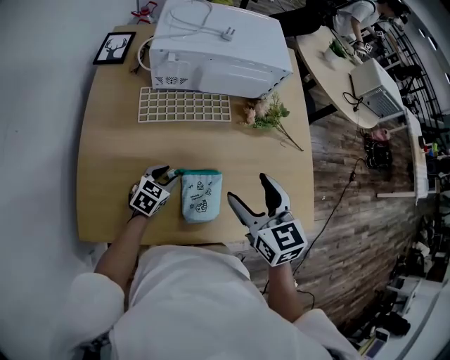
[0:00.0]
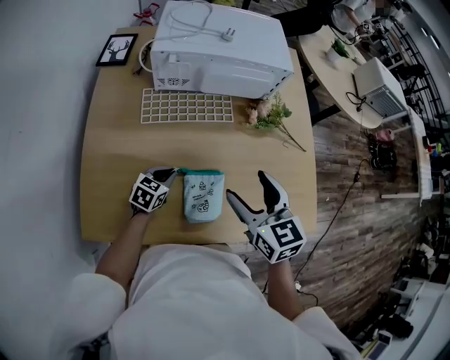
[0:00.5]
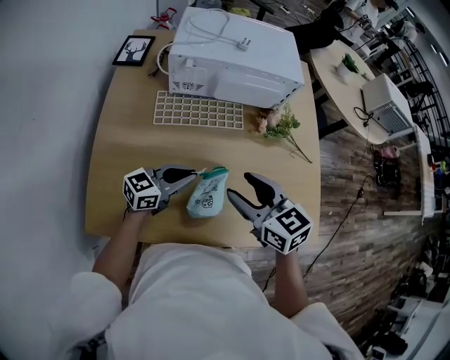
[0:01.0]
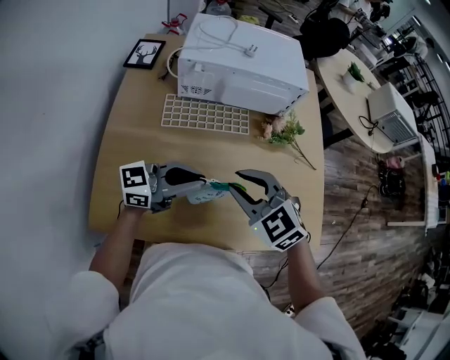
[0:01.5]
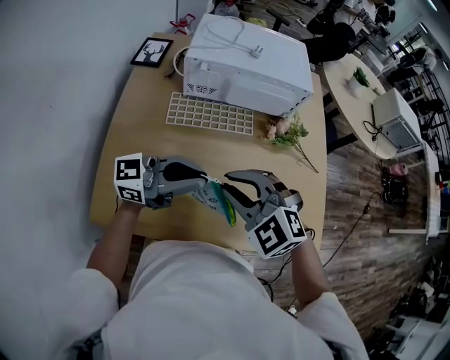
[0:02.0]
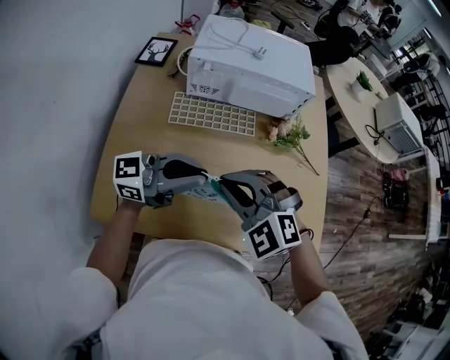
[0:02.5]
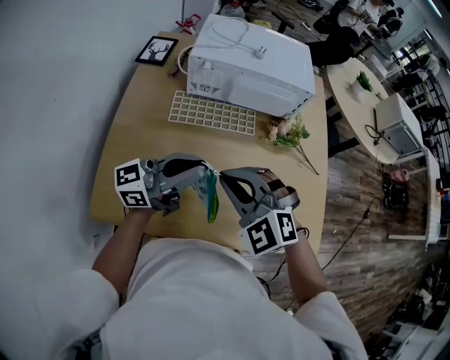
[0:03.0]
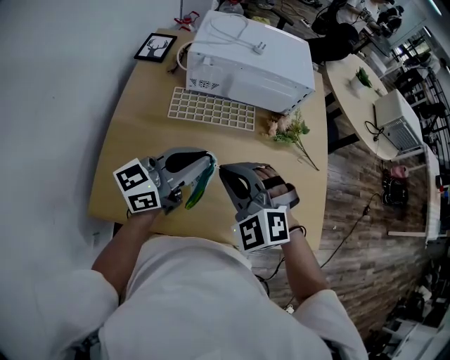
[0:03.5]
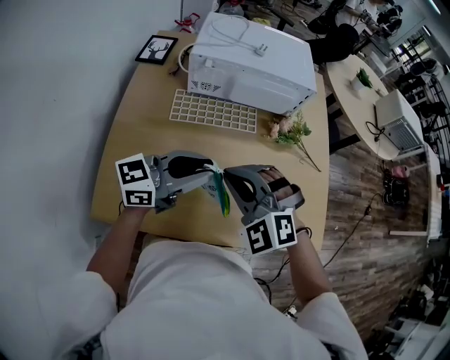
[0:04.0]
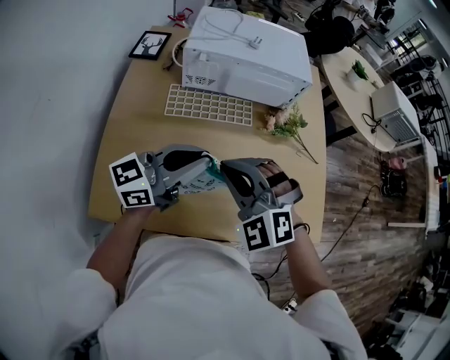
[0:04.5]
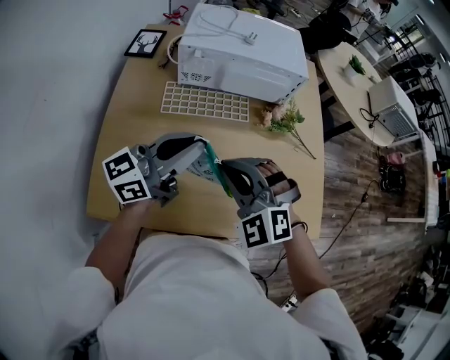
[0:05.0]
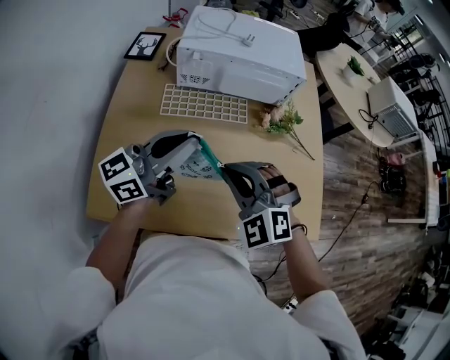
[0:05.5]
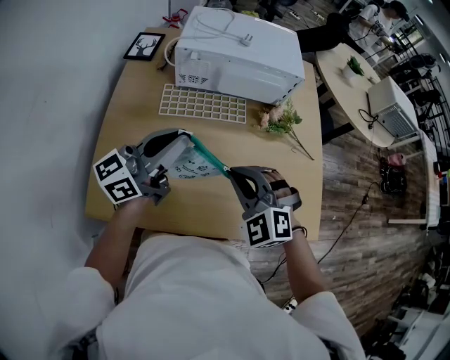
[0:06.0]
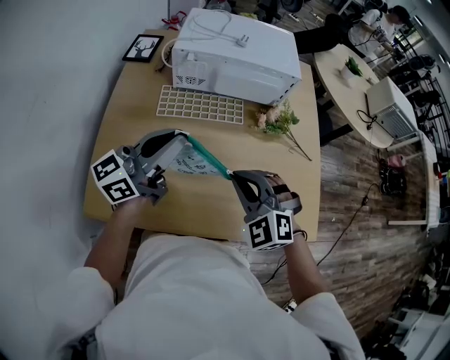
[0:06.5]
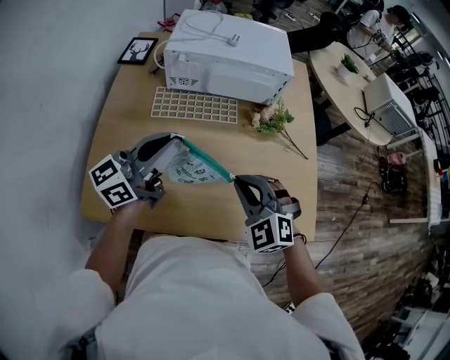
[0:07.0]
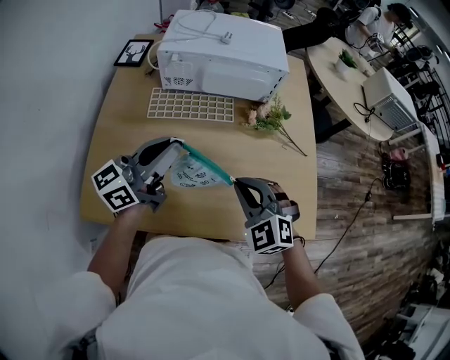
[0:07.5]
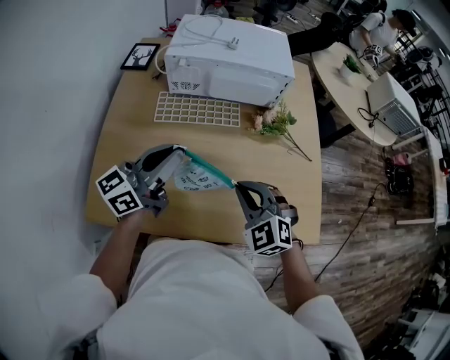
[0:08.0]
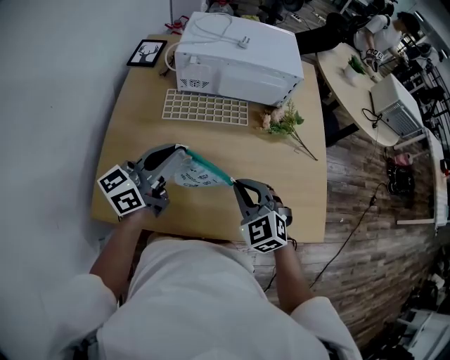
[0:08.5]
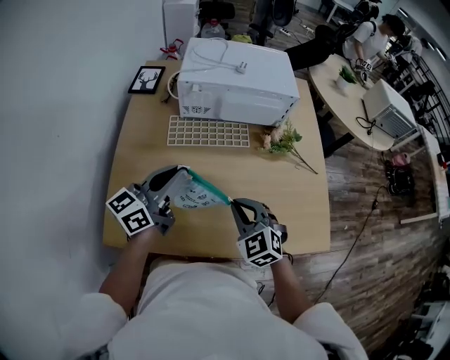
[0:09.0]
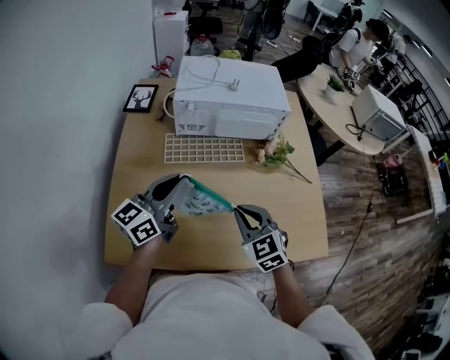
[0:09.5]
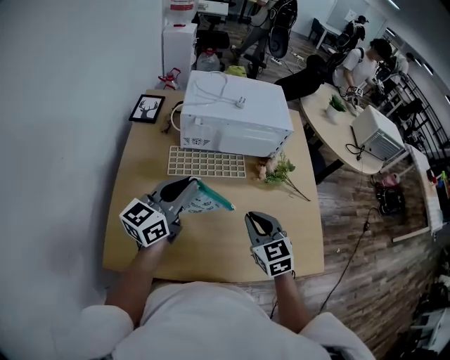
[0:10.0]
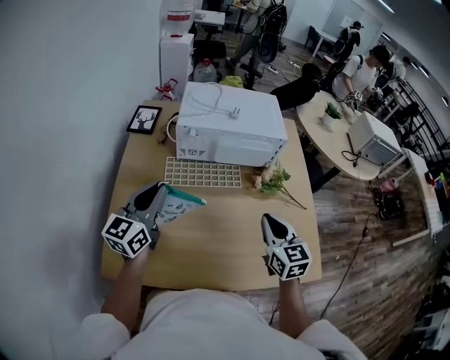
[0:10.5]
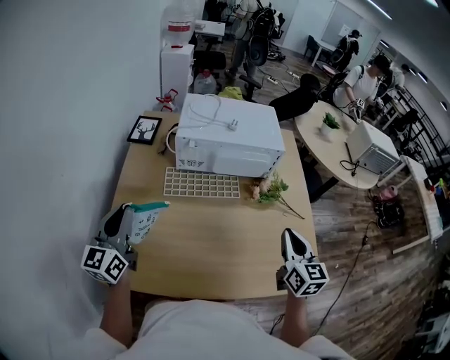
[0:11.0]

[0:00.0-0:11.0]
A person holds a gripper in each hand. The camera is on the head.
0:00.0 to 0:02.0: The left gripper travels upward by approximately 30 cm, tips its fingers upward by approximately 60 degrees, and closes up. Meanwhile the right gripper changes place by roughly 10 cm, rotates around the line of its fingers by roughly 50 degrees, counterclockwise from behind, and closes.
0:02.0 to 0:03.5: The left gripper changes its angle by roughly 30 degrees.
0:03.5 to 0:05.5: The grippers make only small movements.
0:05.5 to 0:07.5: The right gripper moves to the right, approximately 10 cm.
0:07.5 to 0:09.0: Both grippers move to the left, about 5 cm.
0:09.0 to 0:11.0: The right gripper is displaced to the right and upward by roughly 20 cm, and twists about 40 degrees clockwise, seen from behind; the left gripper moves to the left, roughly 15 cm, and rotates about 40 degrees.

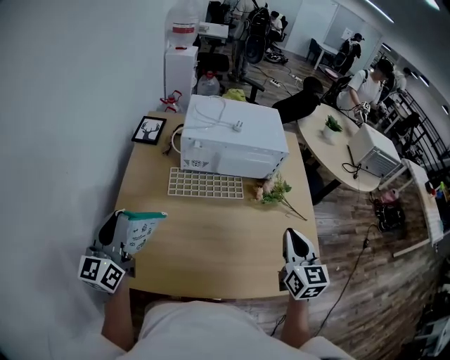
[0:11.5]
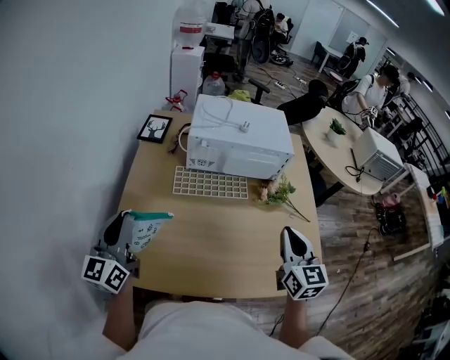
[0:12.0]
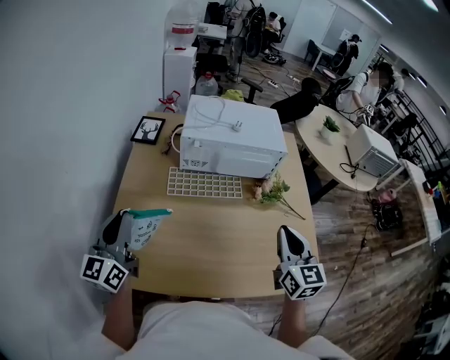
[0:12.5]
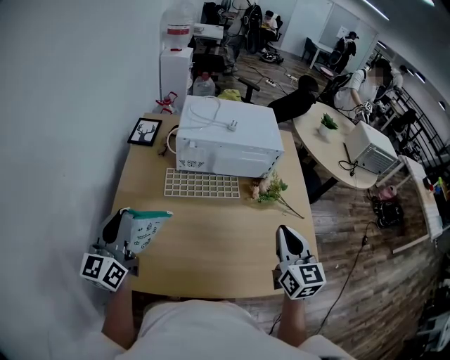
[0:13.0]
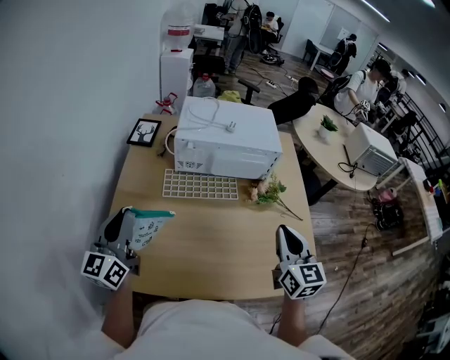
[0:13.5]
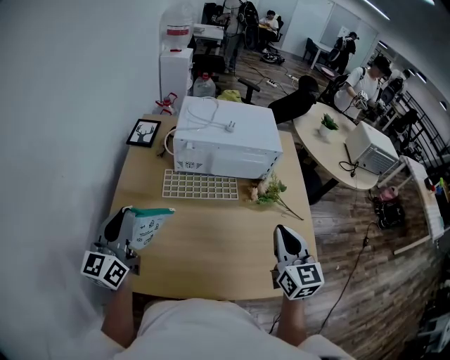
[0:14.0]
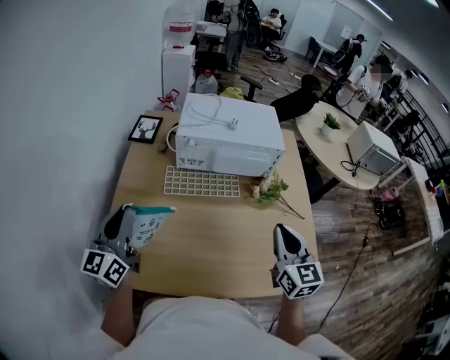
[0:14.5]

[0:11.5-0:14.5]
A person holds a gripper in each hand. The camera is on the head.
0:11.5 to 0:14.5: There are only small adjustments of the grippers.

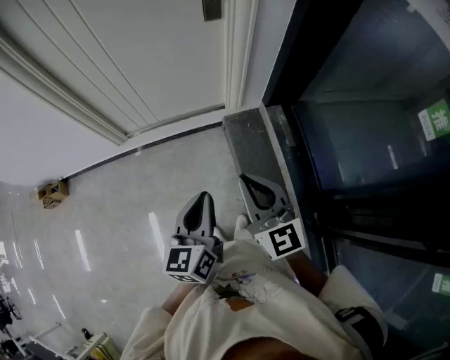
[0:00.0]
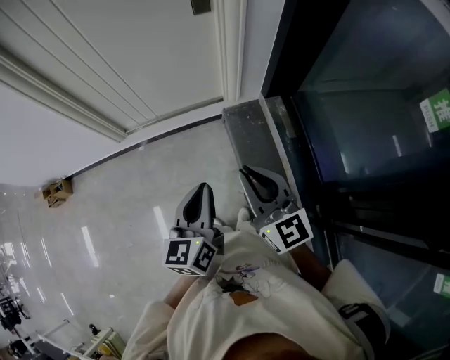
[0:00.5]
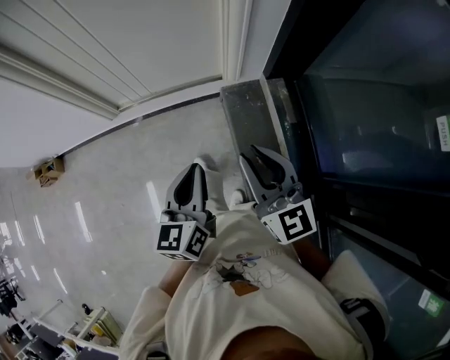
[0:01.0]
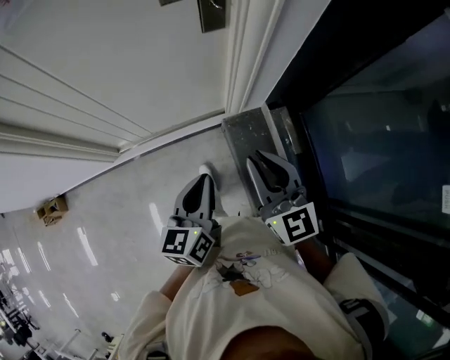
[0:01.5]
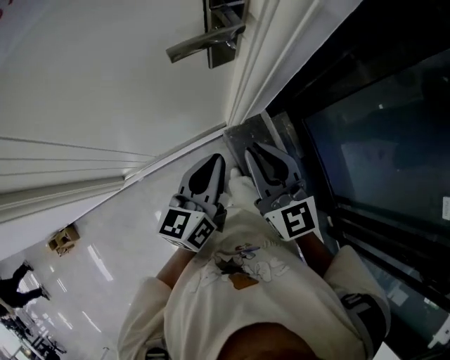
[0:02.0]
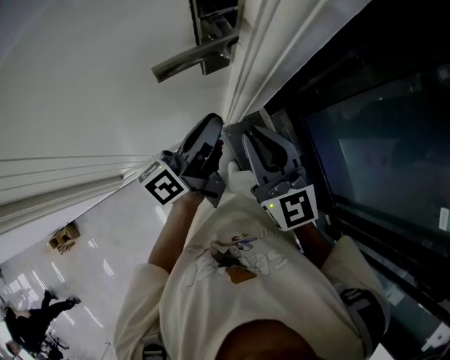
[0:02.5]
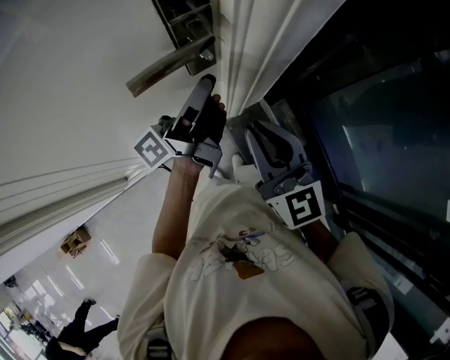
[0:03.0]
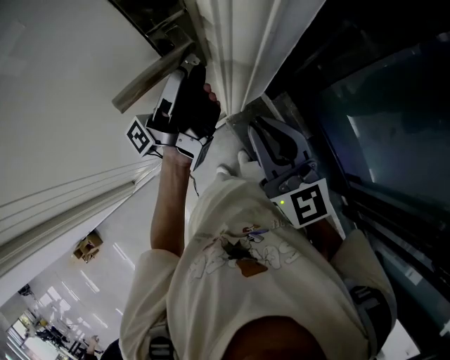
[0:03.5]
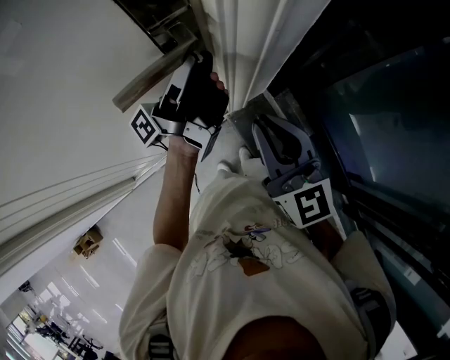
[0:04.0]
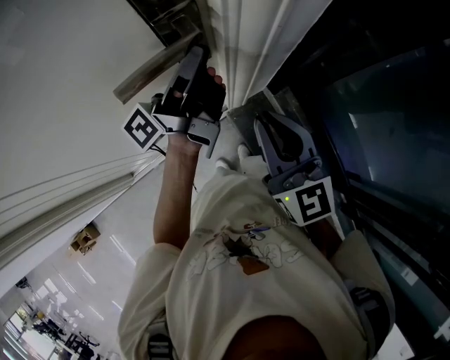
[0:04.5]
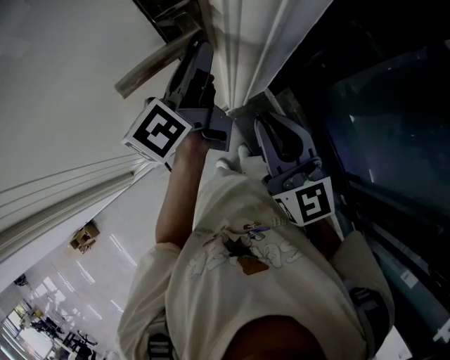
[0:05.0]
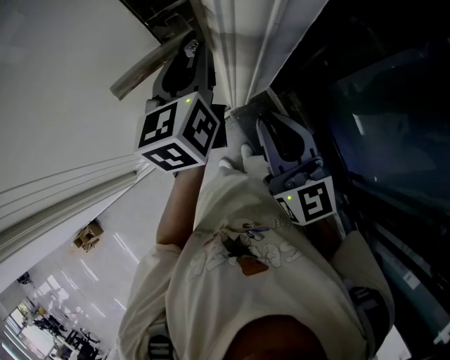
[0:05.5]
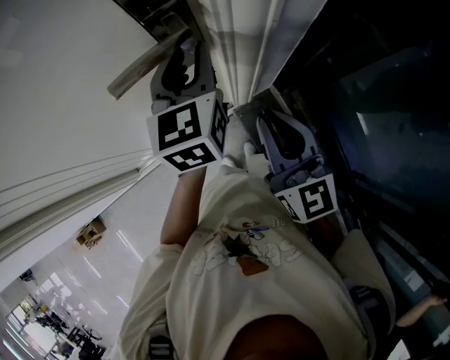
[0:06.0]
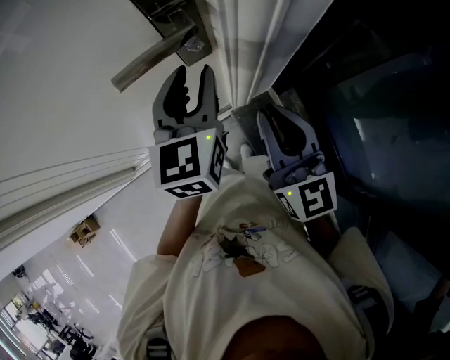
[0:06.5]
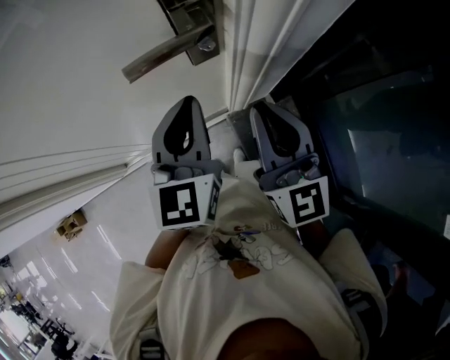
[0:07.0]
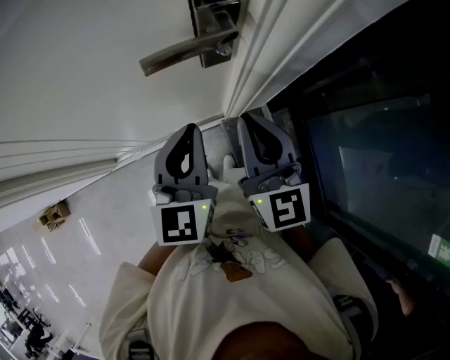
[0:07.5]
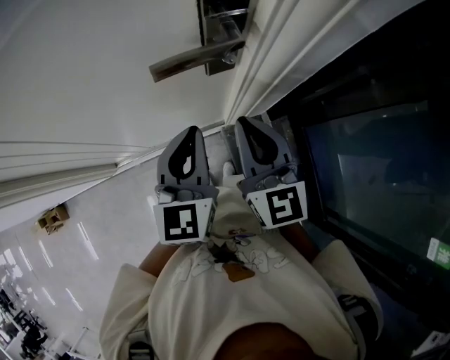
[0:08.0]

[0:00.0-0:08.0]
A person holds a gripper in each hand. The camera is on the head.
0:00.0 to 0:02.0: The two grippers travel together, forward, about 40 cm. The left gripper rotates approximately 20 degrees.
0:02.0 to 0:04.0: The left gripper goes roughly 25 cm forward, points its fingers roughly 40 degrees further upward, and opens, while the right gripper travels forward and to the right by some 10 cm.
0:04.0 to 0:06.0: The left gripper rolls clockwise, seen from behind, by roughly 90 degrees.
0:06.0 to 0:08.0: The left gripper travels backward and to the left by approximately 15 cm, and closes; the right gripper is displaced to the left by roughly 5 cm.

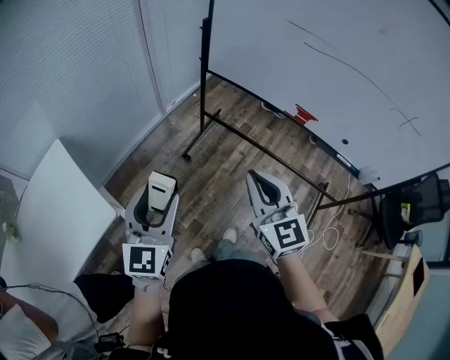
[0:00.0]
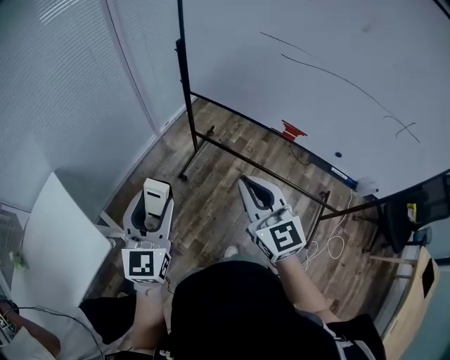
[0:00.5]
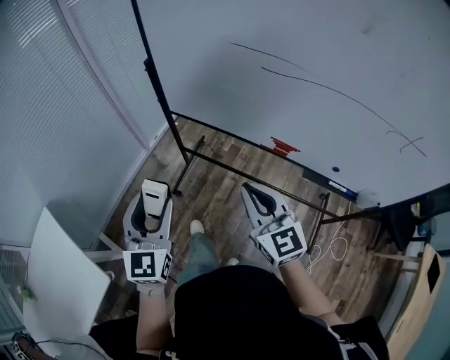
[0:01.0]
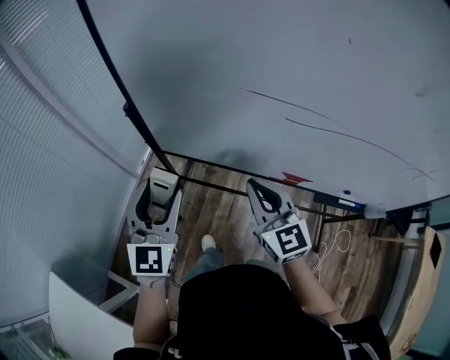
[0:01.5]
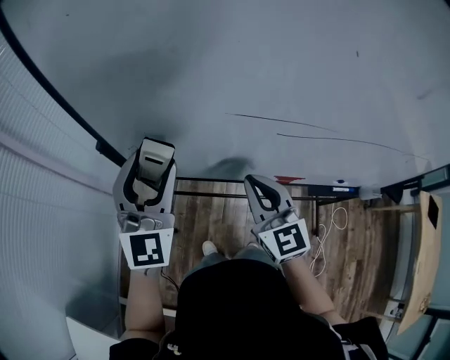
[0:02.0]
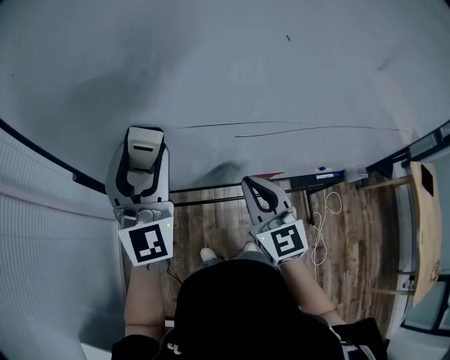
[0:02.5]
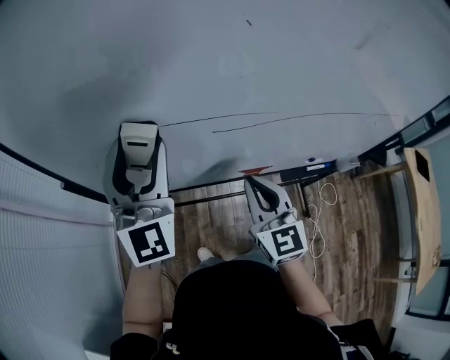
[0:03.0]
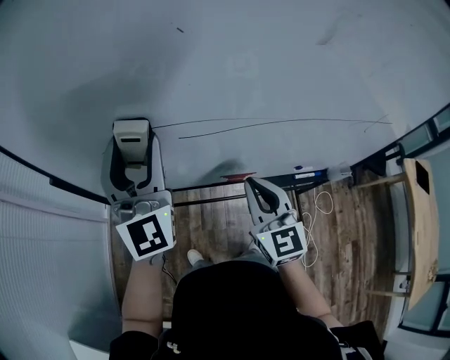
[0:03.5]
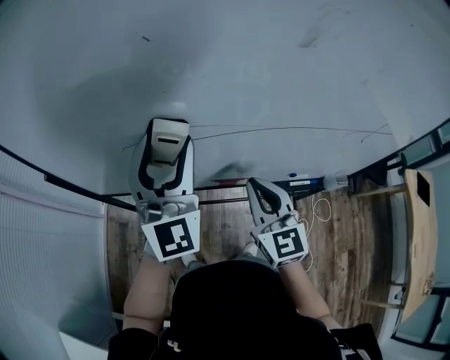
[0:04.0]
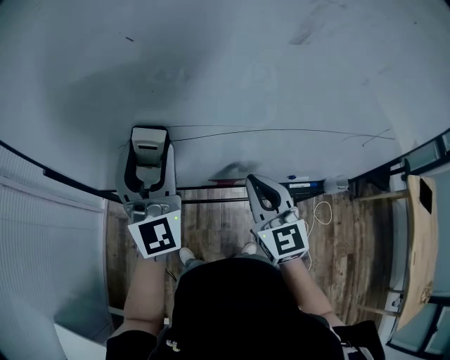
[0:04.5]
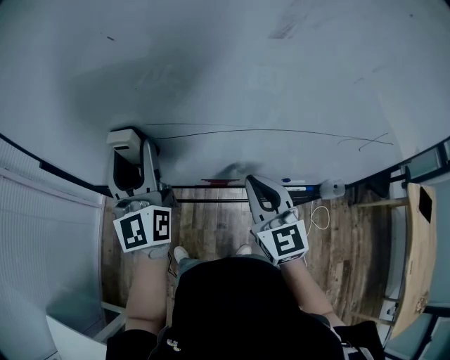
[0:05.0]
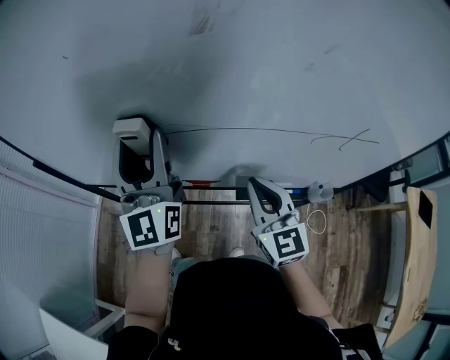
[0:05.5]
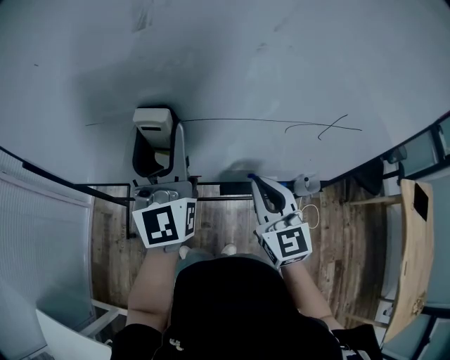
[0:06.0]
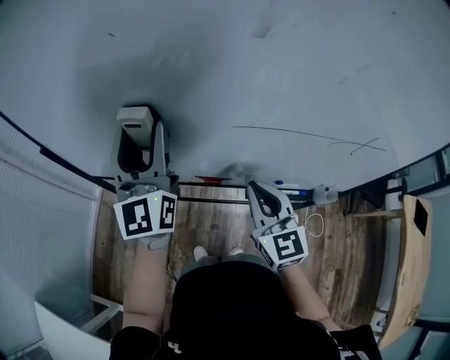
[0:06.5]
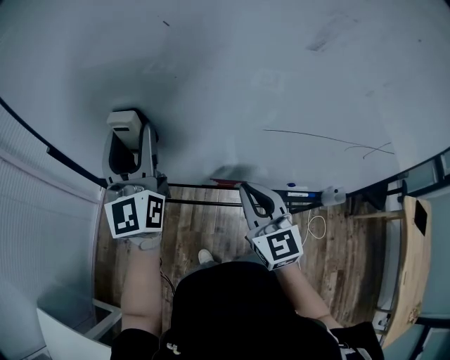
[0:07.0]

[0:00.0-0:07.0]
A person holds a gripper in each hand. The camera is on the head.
0:00.0 to 0:02.0: The two grippers travel together, some 50 cm. The right gripper swivels about 30 degrees. The left gripper changes its angle by approximately 30 degrees.
0:02.0 to 0:03.5: Both grippers travel together to the right, approximately 15 cm.
0:03.5 to 0:05.0: The right gripper is displaced to the right by roughly 10 cm. Meanwhile the left gripper rotates approximately 20 degrees.
0:05.0 to 0:07.0: The right gripper reaches some 15 cm to the right, then returns. The left gripper moves approximately 20 cm to the right and comes back.